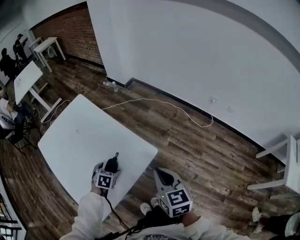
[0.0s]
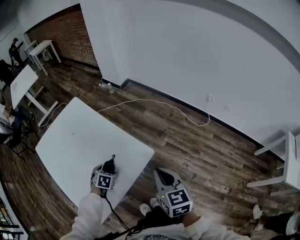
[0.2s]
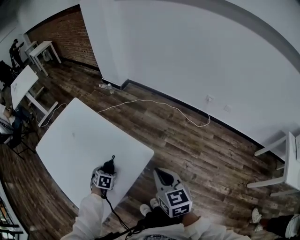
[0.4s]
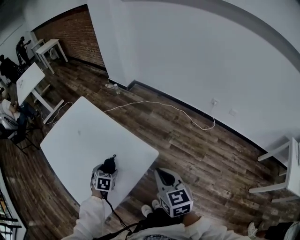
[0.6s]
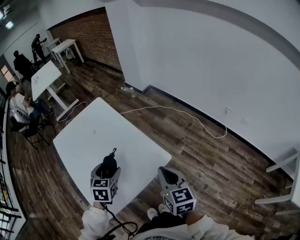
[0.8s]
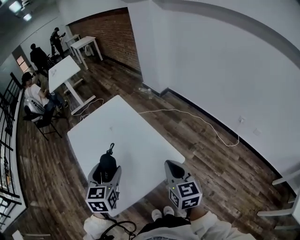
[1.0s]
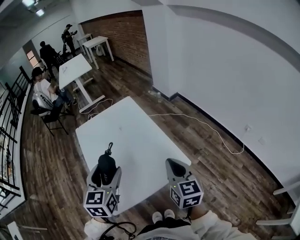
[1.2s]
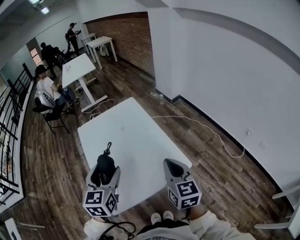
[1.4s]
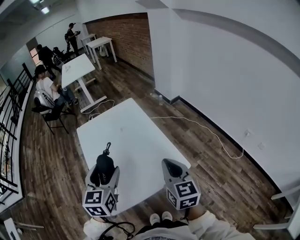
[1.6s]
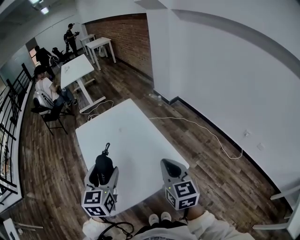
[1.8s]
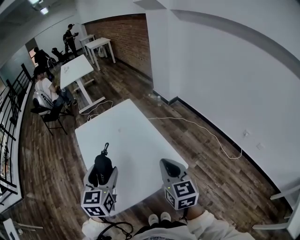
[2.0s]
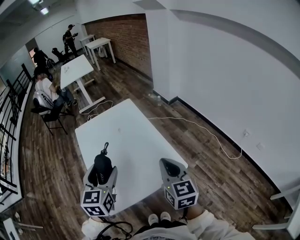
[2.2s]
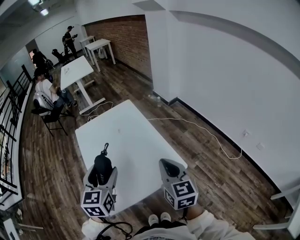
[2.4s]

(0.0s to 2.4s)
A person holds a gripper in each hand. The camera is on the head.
0.0s - 1.2s: The left gripper travels upward by approximately 30 cm, and angles its fingers upward, by some 40 degrees; the right gripper moves to the left, upward and forward, about 15 cm.
1.2s - 2.4s: The grippers stay close to where they were, moving slightly.

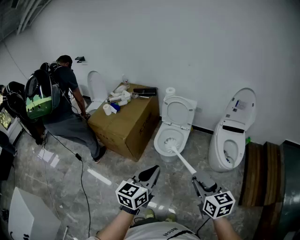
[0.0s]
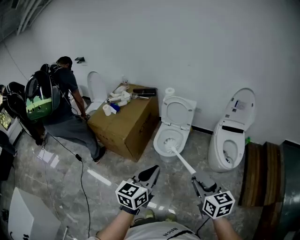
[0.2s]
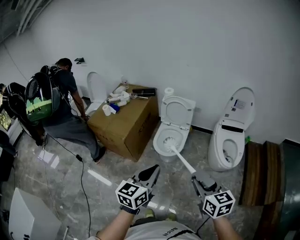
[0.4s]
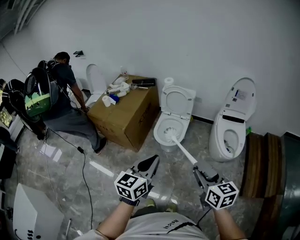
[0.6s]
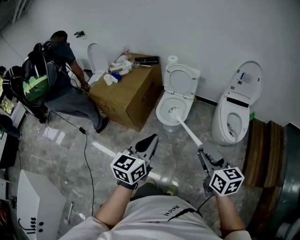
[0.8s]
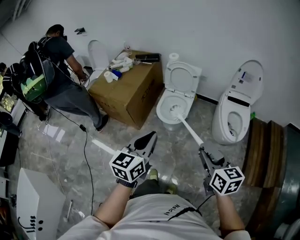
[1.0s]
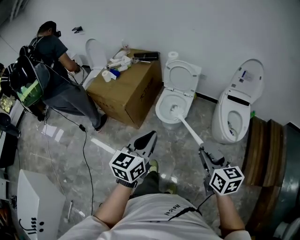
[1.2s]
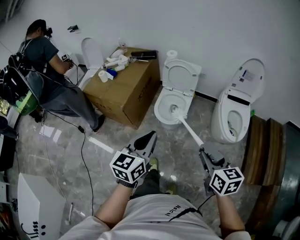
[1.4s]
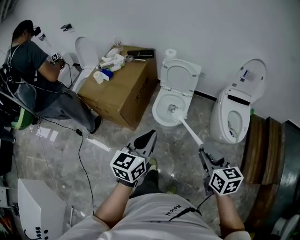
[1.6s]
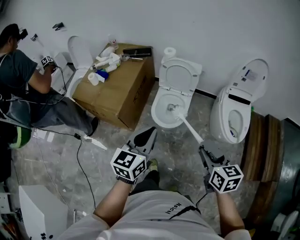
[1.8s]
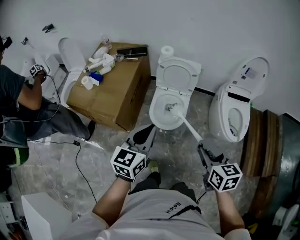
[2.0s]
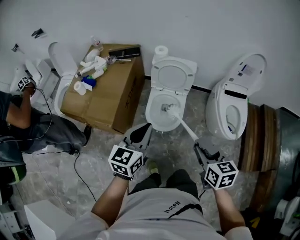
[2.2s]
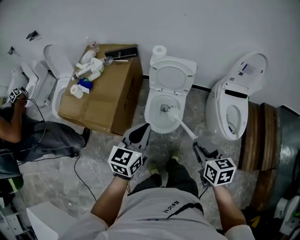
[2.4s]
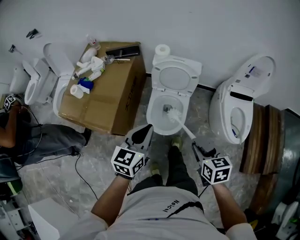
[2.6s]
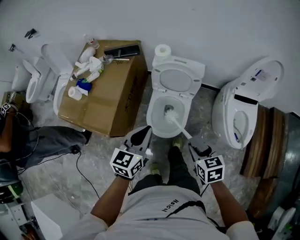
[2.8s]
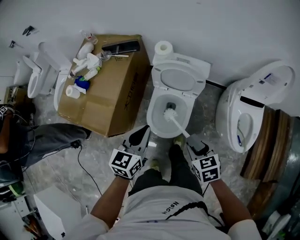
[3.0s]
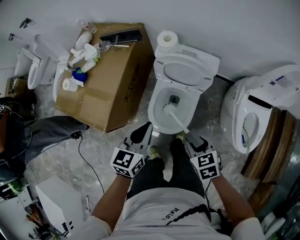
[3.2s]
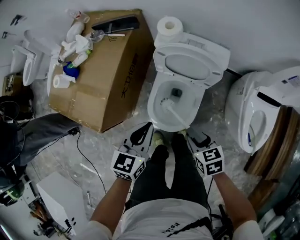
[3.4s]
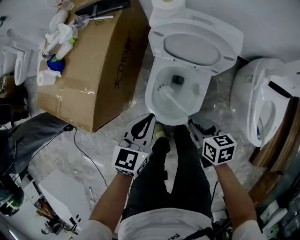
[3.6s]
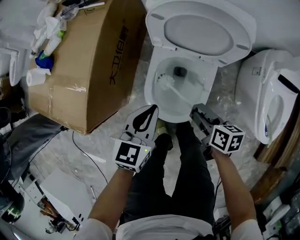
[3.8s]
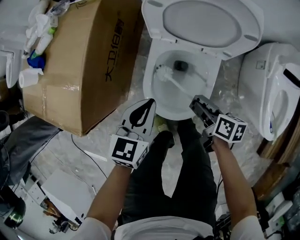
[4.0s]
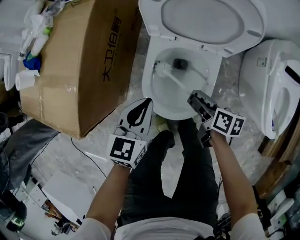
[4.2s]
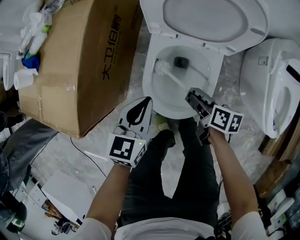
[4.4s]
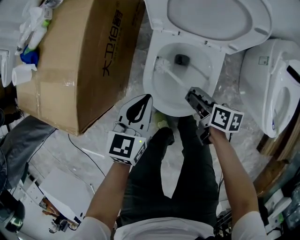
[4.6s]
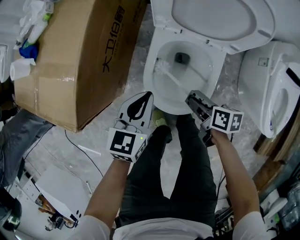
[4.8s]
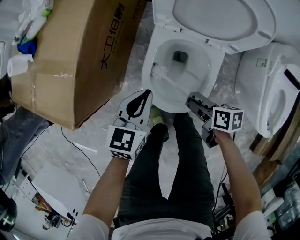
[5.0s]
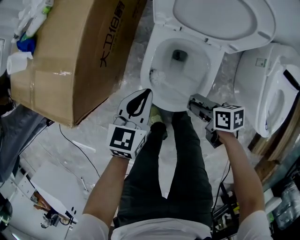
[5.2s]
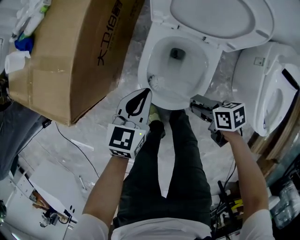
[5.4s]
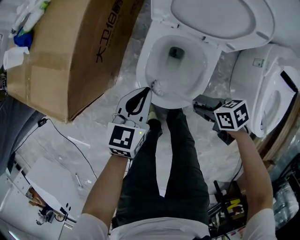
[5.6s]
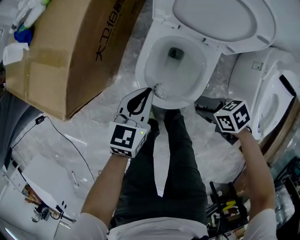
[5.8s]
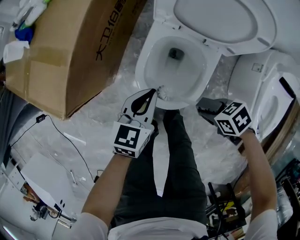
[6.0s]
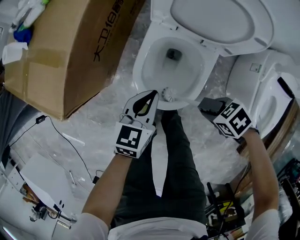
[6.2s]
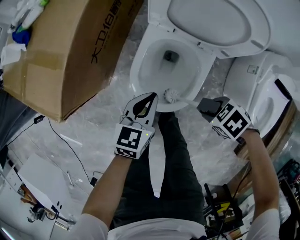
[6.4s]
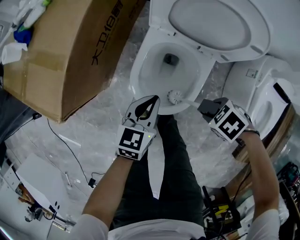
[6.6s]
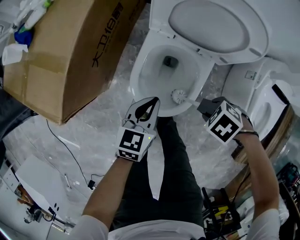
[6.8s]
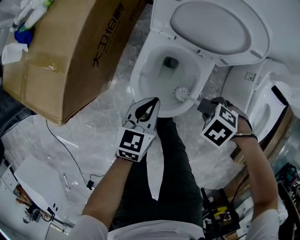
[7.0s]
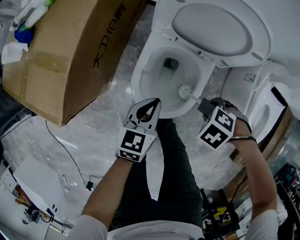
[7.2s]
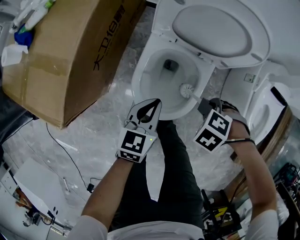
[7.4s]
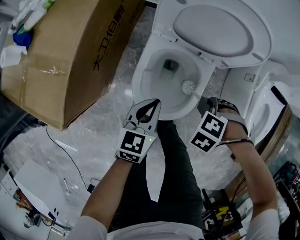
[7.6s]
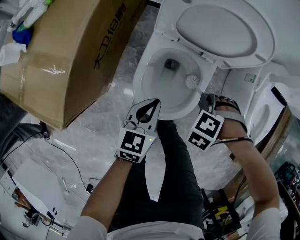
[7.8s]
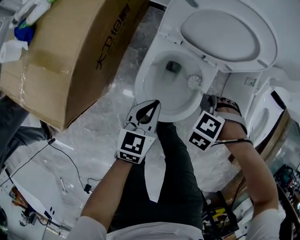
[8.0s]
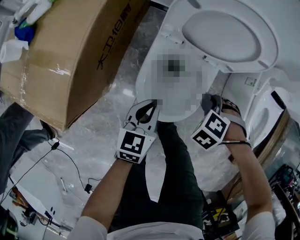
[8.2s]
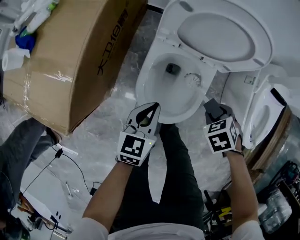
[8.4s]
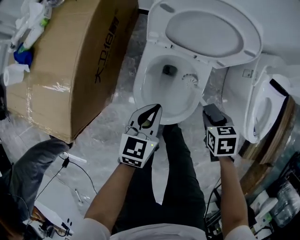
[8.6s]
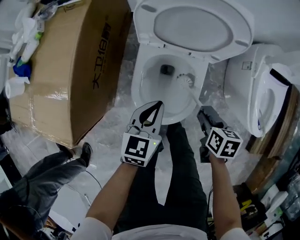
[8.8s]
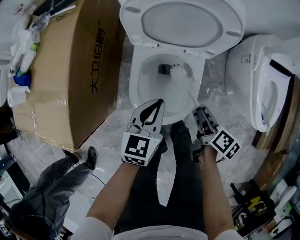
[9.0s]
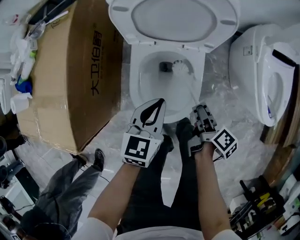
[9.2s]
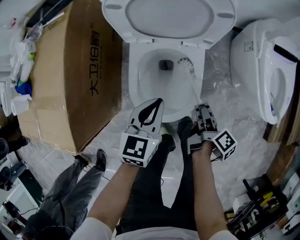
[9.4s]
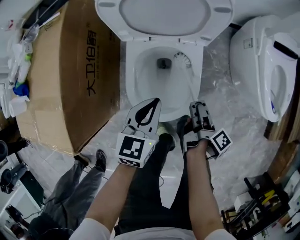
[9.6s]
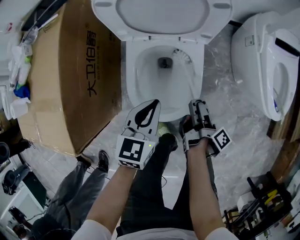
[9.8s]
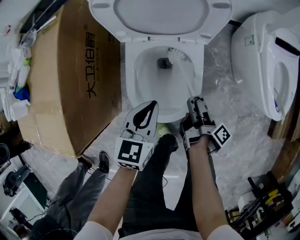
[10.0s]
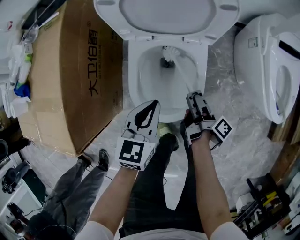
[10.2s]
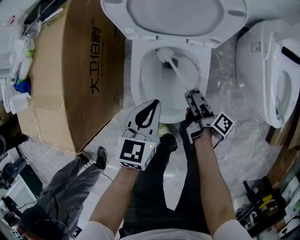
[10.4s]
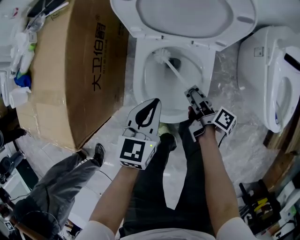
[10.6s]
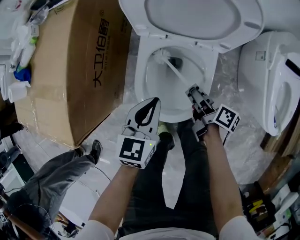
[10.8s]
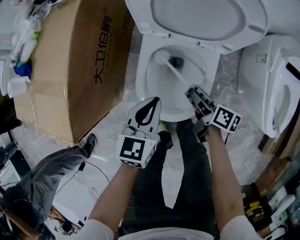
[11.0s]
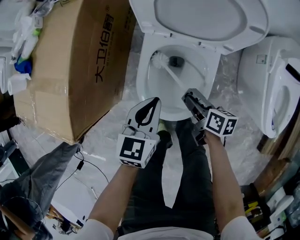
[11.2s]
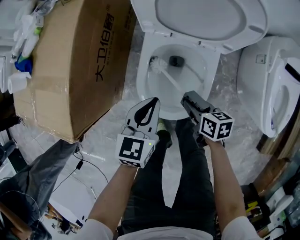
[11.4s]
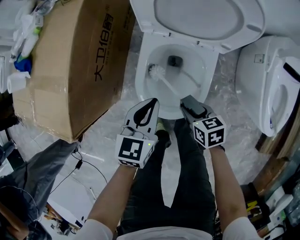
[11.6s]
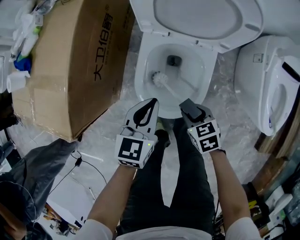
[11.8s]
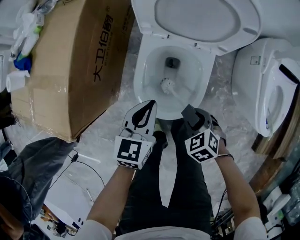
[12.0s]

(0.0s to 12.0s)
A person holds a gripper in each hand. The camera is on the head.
0.0s - 1.6s: The grippers both shift forward by roughly 10 cm.
1.6s - 3.0s: The grippers both shift forward and downward by approximately 40 cm. The right gripper rotates approximately 30 degrees.
3.0s - 4.4s: Both grippers travel together downward, approximately 35 cm. The right gripper twists roughly 50 degrees clockwise, seen from behind.
4.4s - 6.0s: The right gripper moves approximately 10 cm, and changes its angle by roughly 70 degrees.
6.0s - 7.6s: The right gripper ends up roughly 5 cm from where it was, and rotates roughly 60 degrees.
7.6s - 9.0s: The right gripper ends up roughly 5 cm from where it was, and rotates around the line of its fingers by roughly 130 degrees, clockwise from behind, while the left gripper shifts by some 5 cm.
9.0s - 10.4s: The right gripper goes about 10 cm downward, and changes its angle by about 30 degrees.
10.4s - 12.0s: The right gripper goes approximately 10 cm backward, to the left and upward, and rotates around the line of its fingers by roughly 110 degrees, counterclockwise from behind.

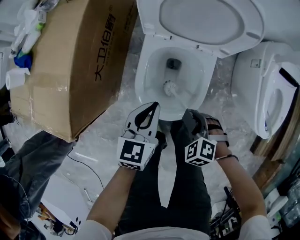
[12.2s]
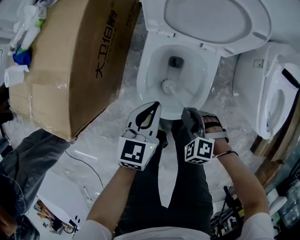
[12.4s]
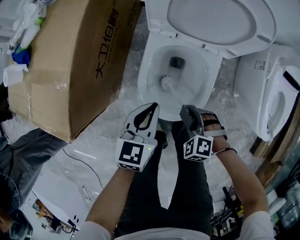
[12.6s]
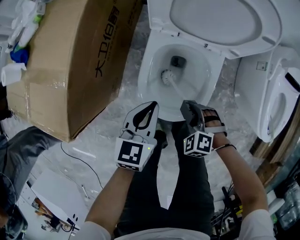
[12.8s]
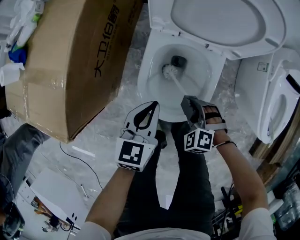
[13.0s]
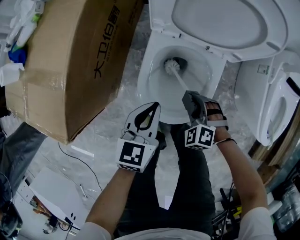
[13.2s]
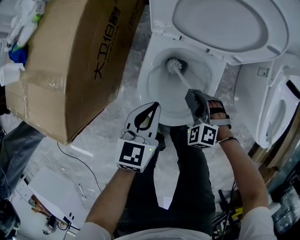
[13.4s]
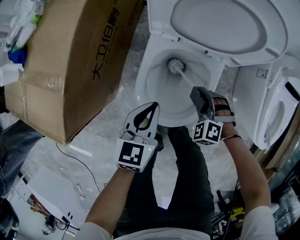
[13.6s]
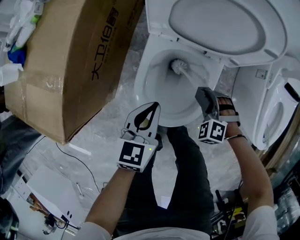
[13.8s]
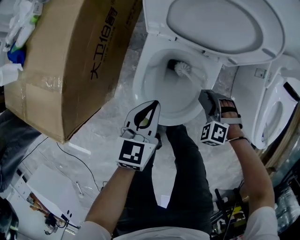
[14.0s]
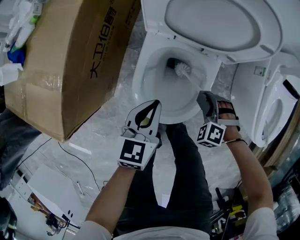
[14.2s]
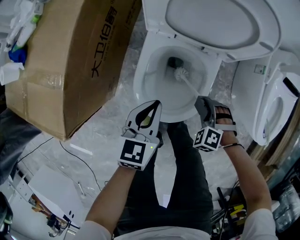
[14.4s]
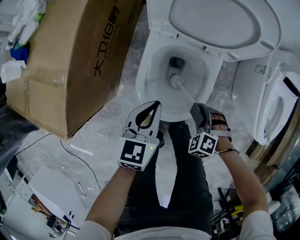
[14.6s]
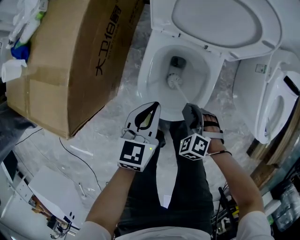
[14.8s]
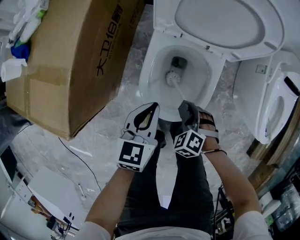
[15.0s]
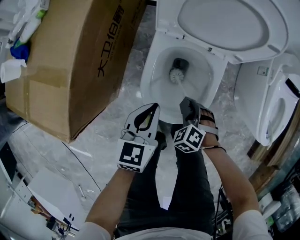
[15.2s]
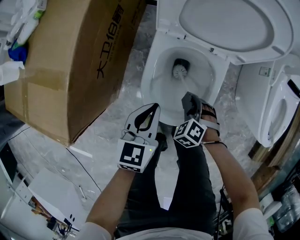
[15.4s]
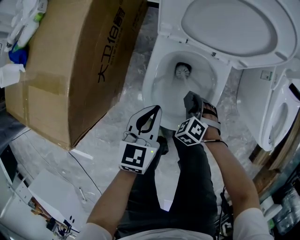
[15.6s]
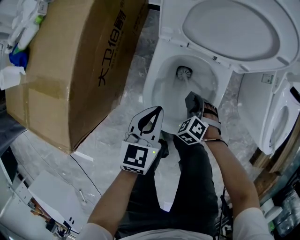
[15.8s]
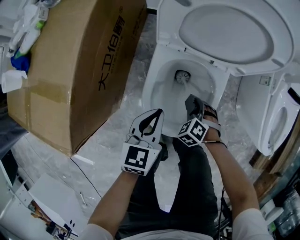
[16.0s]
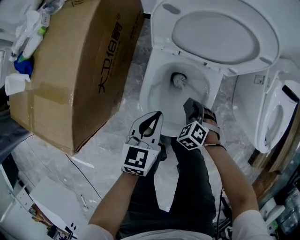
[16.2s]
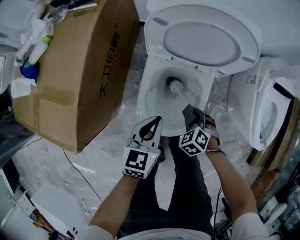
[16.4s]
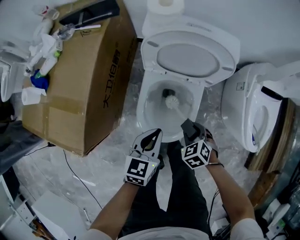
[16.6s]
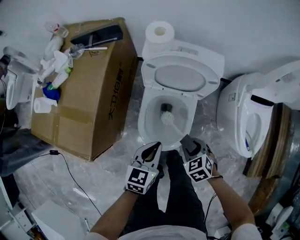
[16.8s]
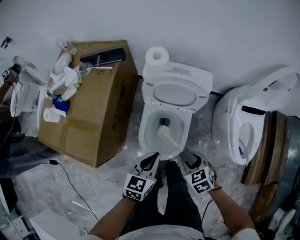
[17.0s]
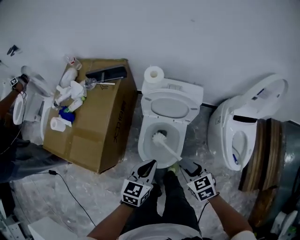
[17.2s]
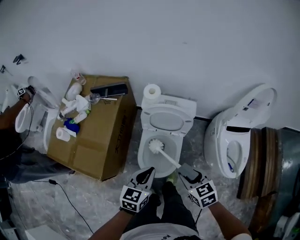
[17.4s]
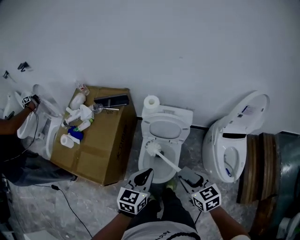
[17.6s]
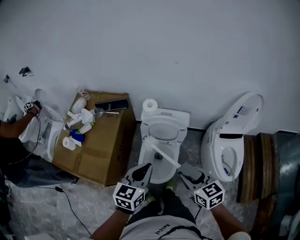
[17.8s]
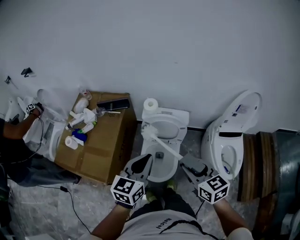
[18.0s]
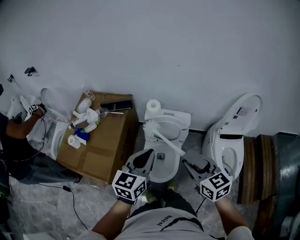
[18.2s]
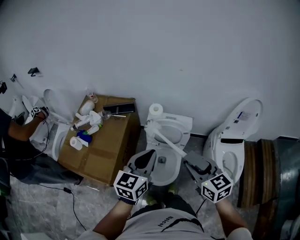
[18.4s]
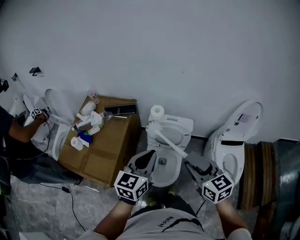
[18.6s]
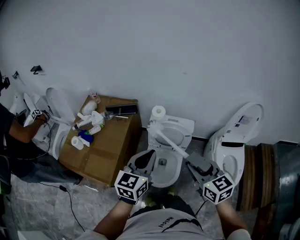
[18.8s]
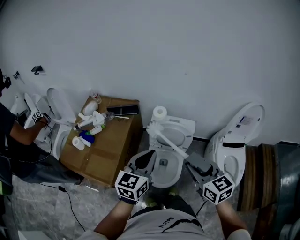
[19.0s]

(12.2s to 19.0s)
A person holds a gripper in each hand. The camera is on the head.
12.2s - 13.6s: The right gripper goes approximately 15 cm forward and downward.
13.6s - 15.0s: The right gripper shifts approximately 10 cm backward.
15.0s - 16.2s: The right gripper goes some 10 cm forward.
16.2s - 17.6s: The two grippers go some 50 cm upward. The right gripper tilts its fingers about 30 degrees upward.
17.6s - 19.0s: Both grippers travel together upward, some 15 cm.

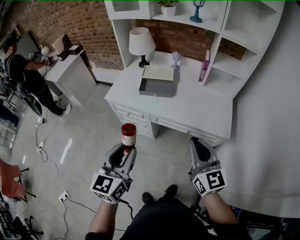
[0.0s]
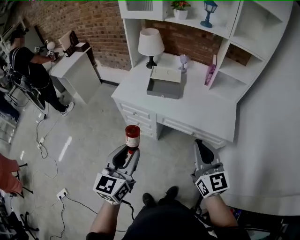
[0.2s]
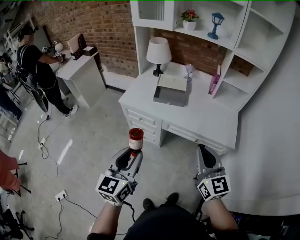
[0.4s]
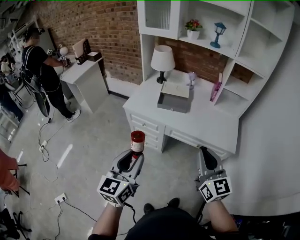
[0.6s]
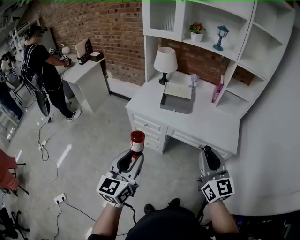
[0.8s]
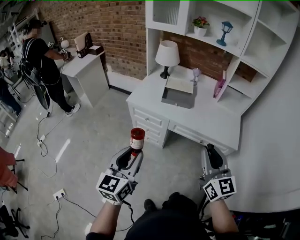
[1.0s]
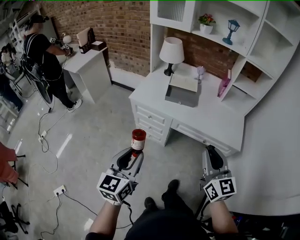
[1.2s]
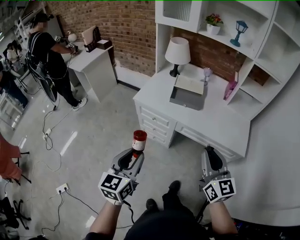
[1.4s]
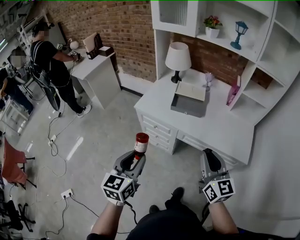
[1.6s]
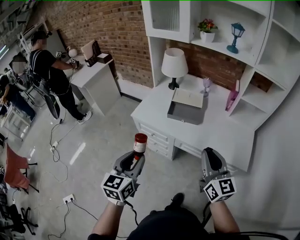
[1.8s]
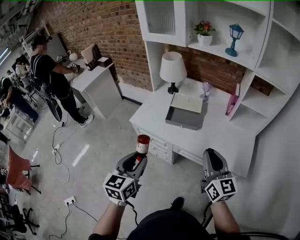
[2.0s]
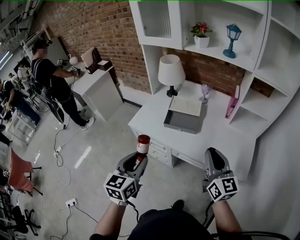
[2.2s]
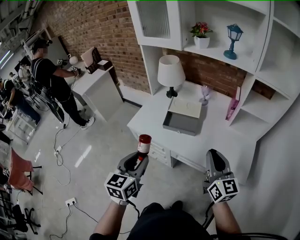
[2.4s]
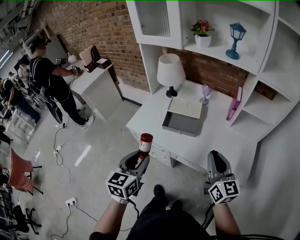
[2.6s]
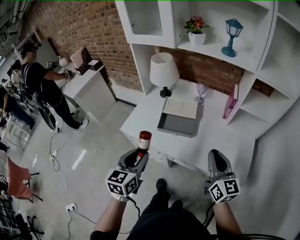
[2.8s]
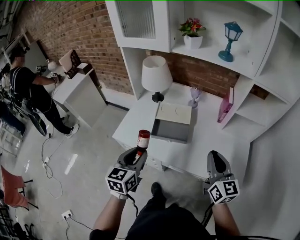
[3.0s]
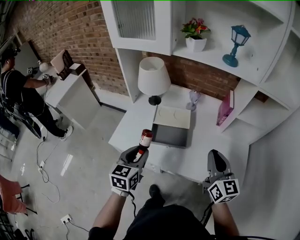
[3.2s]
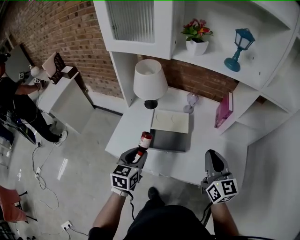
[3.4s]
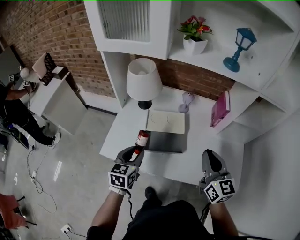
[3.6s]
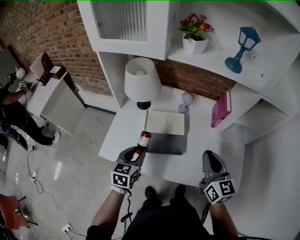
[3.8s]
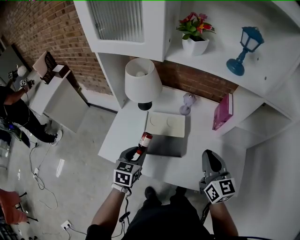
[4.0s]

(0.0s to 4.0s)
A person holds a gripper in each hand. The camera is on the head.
0.0s - 1.4s: The grippers both shift to the left by some 15 cm.
1.4s - 2.6s: The grippers both shift forward and to the right by roughly 25 cm.
2.6s - 4.0s: The left gripper travels forward and downward by approximately 30 cm, and rotates some 20 degrees; the right gripper is displaced forward by about 20 cm.
